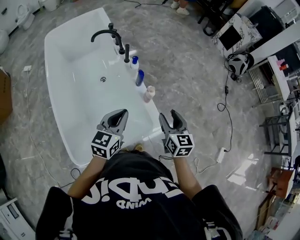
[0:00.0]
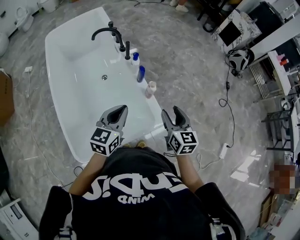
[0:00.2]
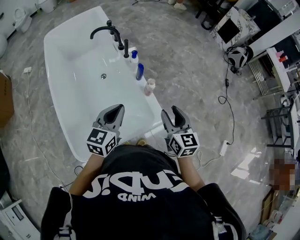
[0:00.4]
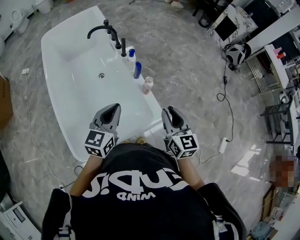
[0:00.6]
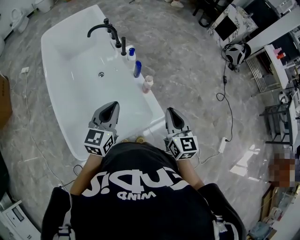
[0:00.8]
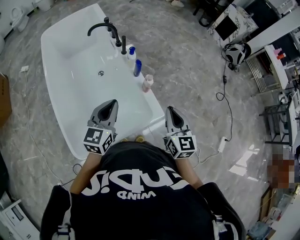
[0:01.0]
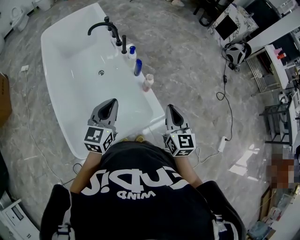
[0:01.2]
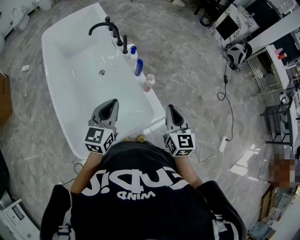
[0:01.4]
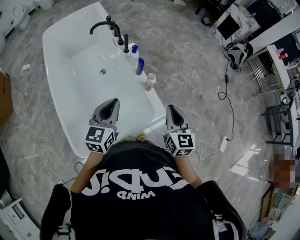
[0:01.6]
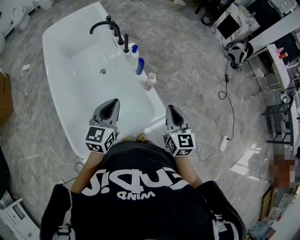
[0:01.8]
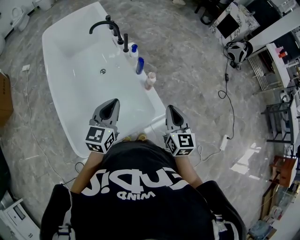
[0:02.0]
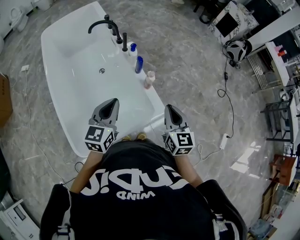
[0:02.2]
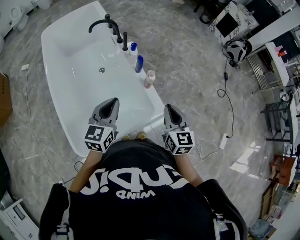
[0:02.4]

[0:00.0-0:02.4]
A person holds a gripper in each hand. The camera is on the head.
0:00.0 to 0:01.2: The right gripper changes place by approximately 5 cm, and closes.
0:01.2 to 0:02.4: The grippers make only small movements.

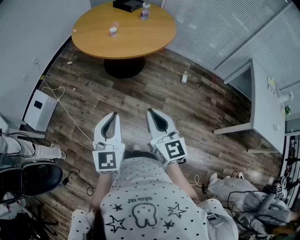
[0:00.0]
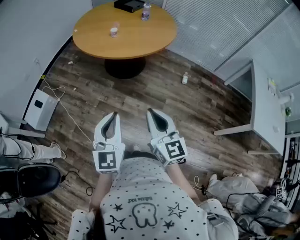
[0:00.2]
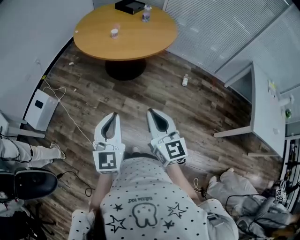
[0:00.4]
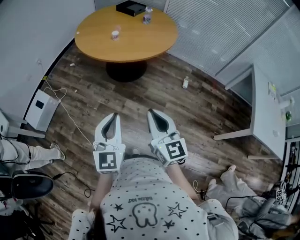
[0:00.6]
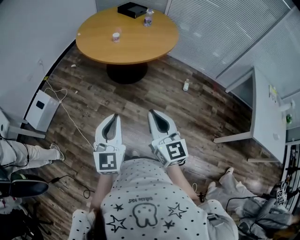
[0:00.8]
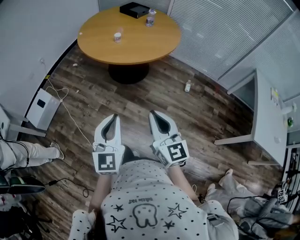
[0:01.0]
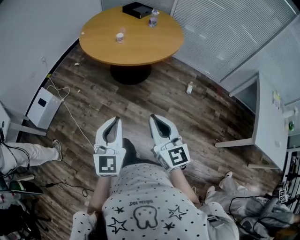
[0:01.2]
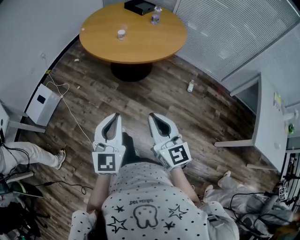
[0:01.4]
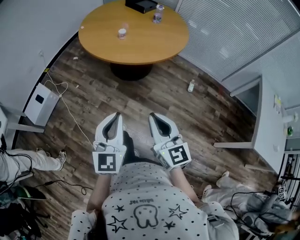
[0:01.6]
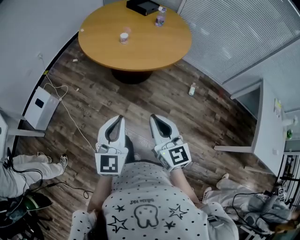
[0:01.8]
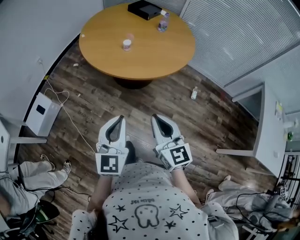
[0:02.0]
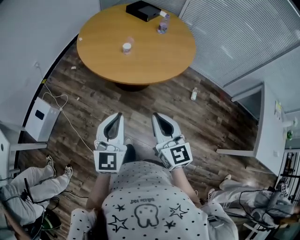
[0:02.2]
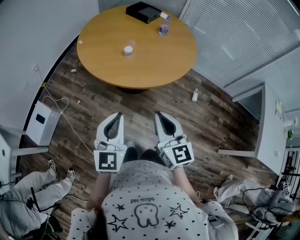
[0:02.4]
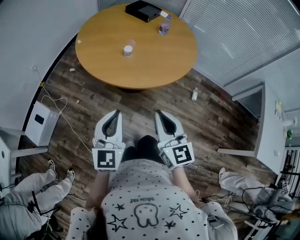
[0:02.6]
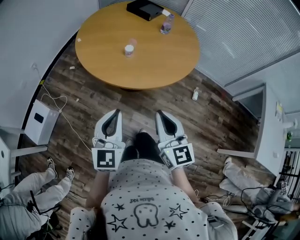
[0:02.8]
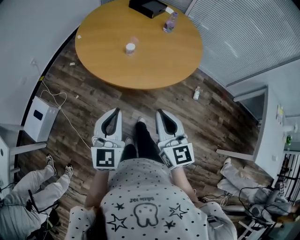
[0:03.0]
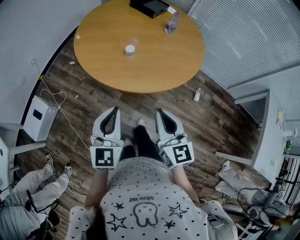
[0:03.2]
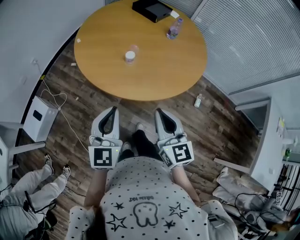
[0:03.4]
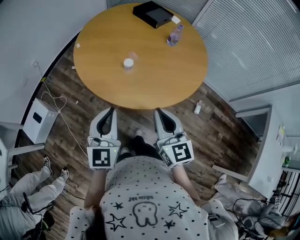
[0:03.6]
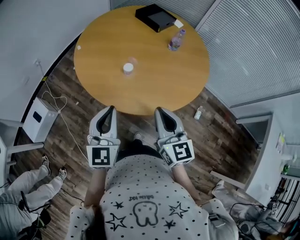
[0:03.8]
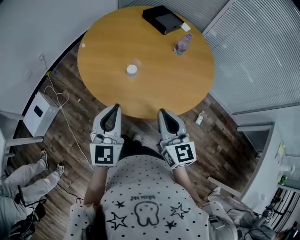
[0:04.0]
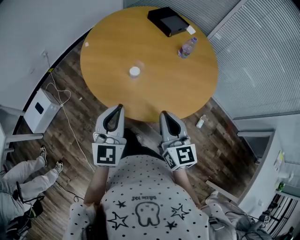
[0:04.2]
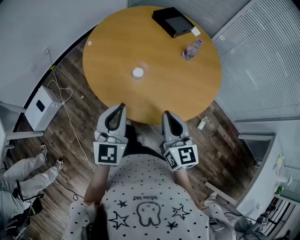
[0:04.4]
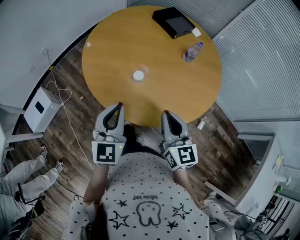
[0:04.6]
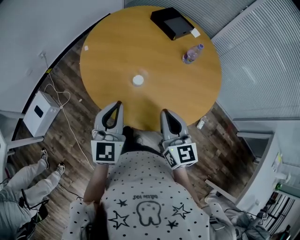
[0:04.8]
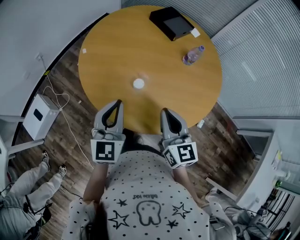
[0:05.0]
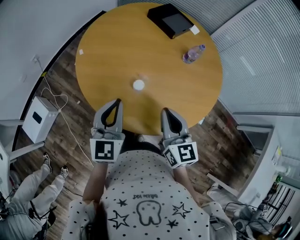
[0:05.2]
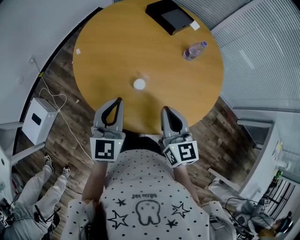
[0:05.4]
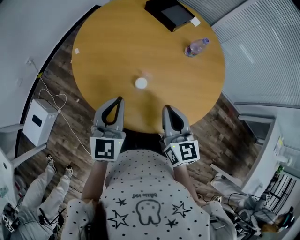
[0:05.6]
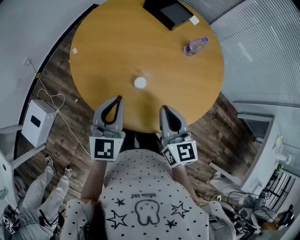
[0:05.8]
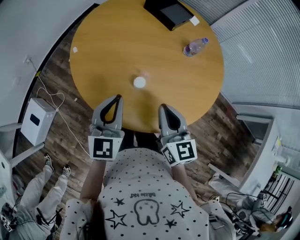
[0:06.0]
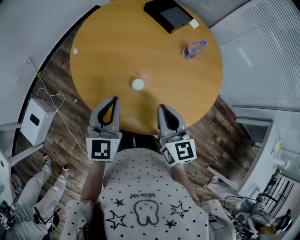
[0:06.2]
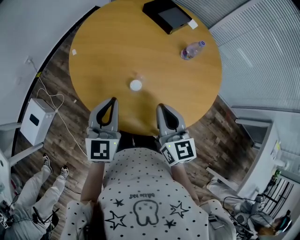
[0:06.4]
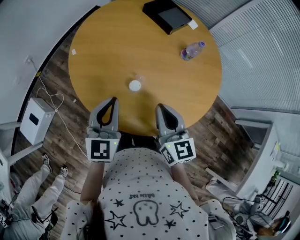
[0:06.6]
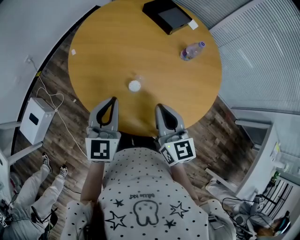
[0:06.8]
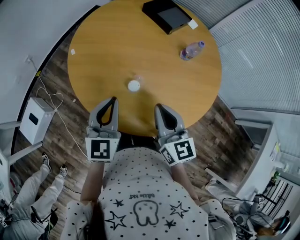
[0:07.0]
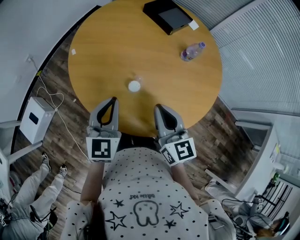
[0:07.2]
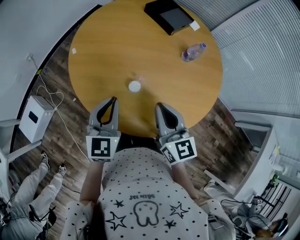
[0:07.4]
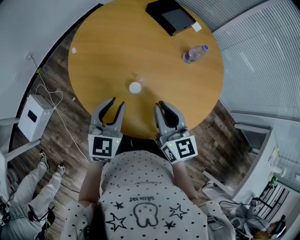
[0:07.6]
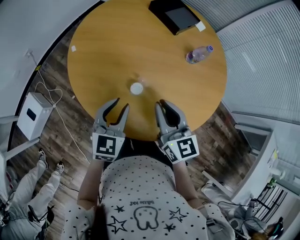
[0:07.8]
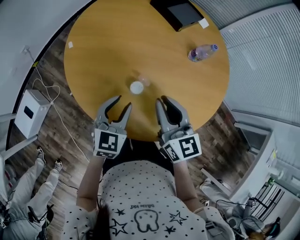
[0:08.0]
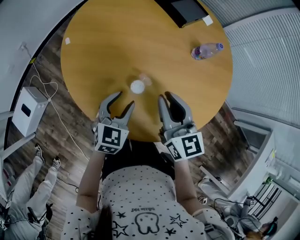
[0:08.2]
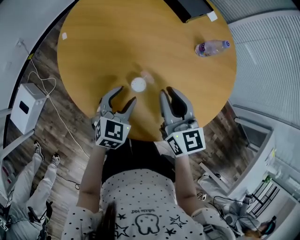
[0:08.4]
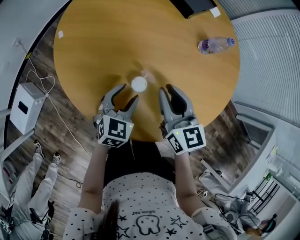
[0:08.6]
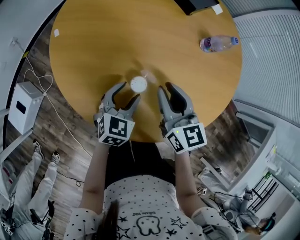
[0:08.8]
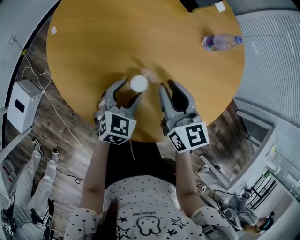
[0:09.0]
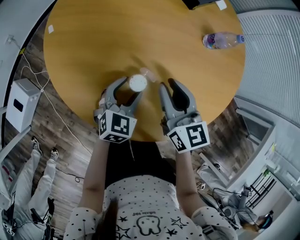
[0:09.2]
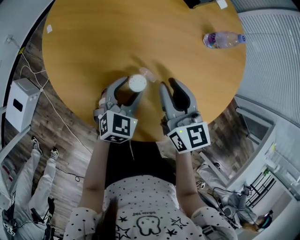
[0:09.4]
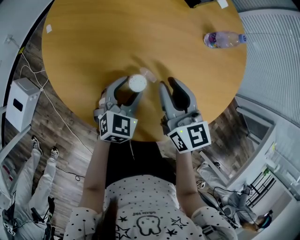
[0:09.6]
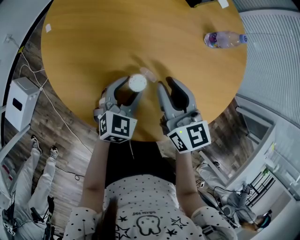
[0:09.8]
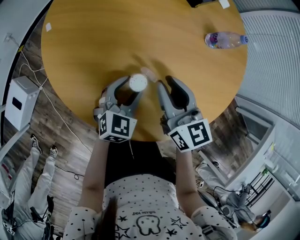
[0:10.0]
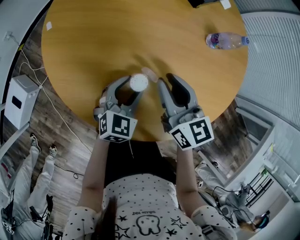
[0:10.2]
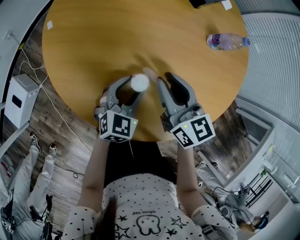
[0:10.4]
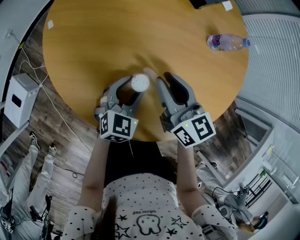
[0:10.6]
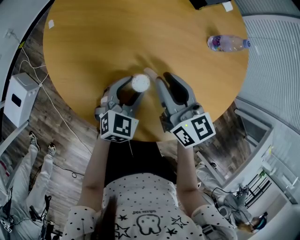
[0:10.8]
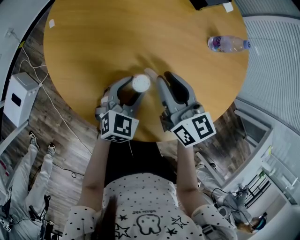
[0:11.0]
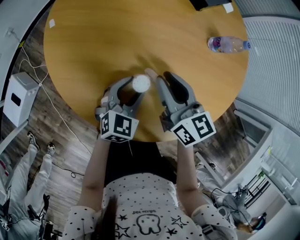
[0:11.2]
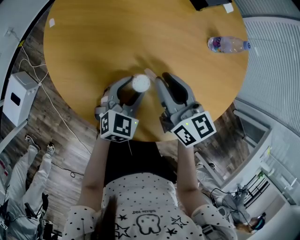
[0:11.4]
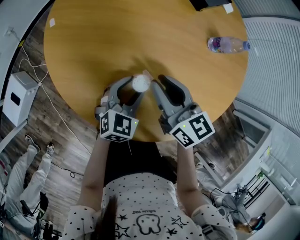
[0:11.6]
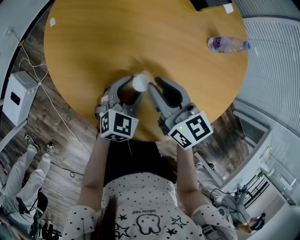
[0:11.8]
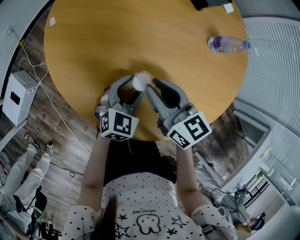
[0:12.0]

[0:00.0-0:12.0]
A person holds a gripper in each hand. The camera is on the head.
0:00.0 to 0:01.6: The grippers both shift forward by roughly 10 cm.
0:01.6 to 0:03.0: The left gripper heads forward and to the left, covering approximately 25 cm; the right gripper moves forward, approximately 25 cm.
0:03.0 to 0:04.4: The grippers both shift forward by about 20 cm.
0:04.4 to 0:06.0: The right gripper travels forward and to the left by roughly 15 cm. The left gripper travels forward by about 15 cm.
0:06.0 to 0:07.6: The left gripper opens its fingers.
0:07.6 to 0:09.0: The left gripper heads downward, covering about 20 cm, rotates some 20 degrees, and opens up; the right gripper is displaced downward and forward by approximately 15 cm.
0:09.0 to 0:12.0: There are only small adjustments of the grippers.

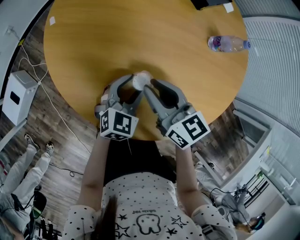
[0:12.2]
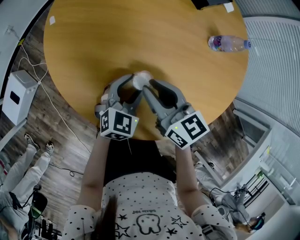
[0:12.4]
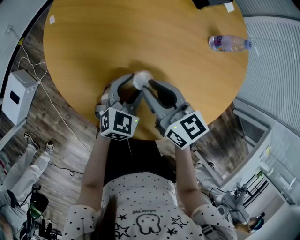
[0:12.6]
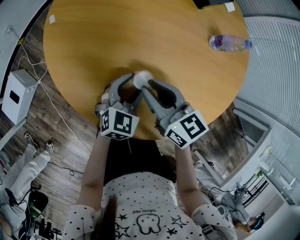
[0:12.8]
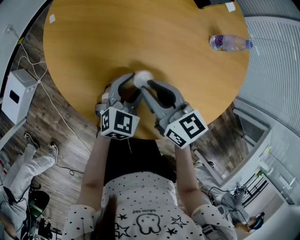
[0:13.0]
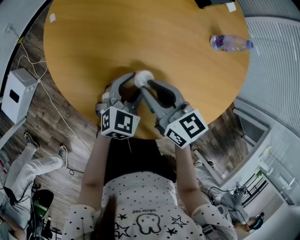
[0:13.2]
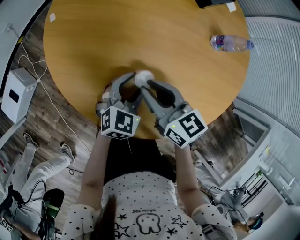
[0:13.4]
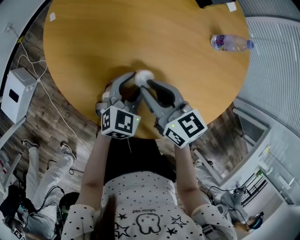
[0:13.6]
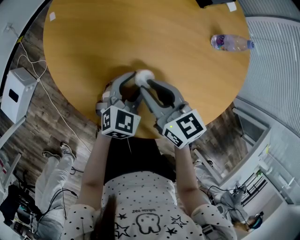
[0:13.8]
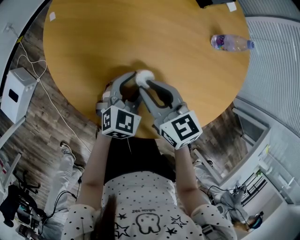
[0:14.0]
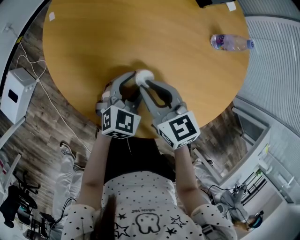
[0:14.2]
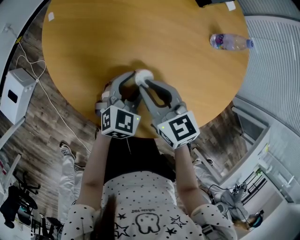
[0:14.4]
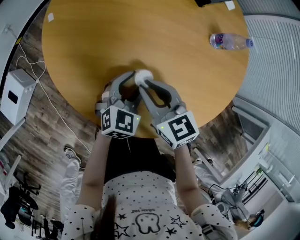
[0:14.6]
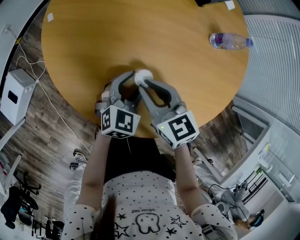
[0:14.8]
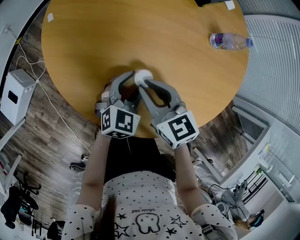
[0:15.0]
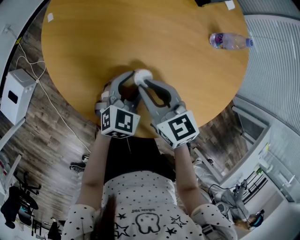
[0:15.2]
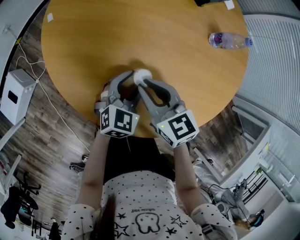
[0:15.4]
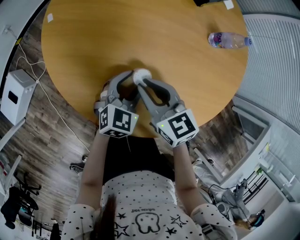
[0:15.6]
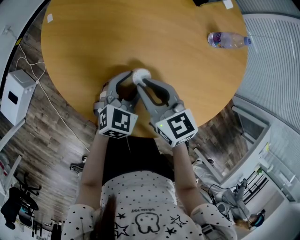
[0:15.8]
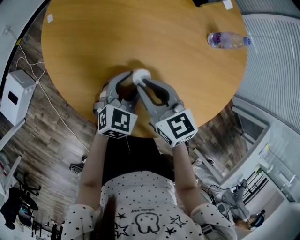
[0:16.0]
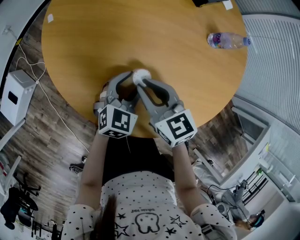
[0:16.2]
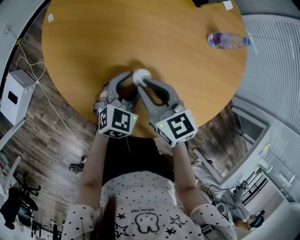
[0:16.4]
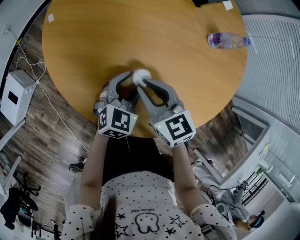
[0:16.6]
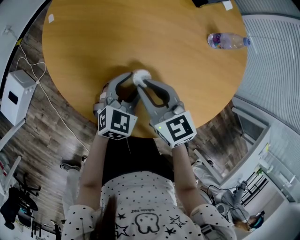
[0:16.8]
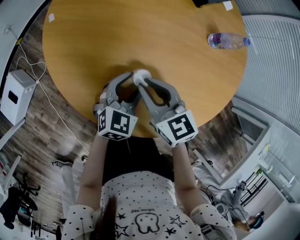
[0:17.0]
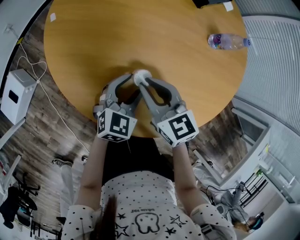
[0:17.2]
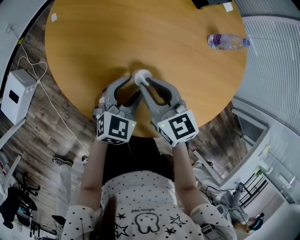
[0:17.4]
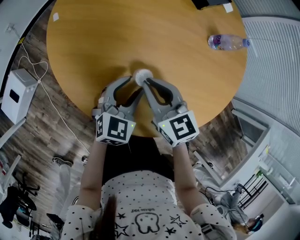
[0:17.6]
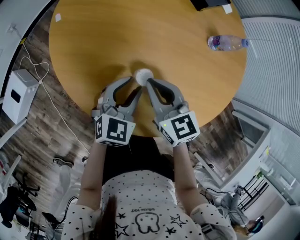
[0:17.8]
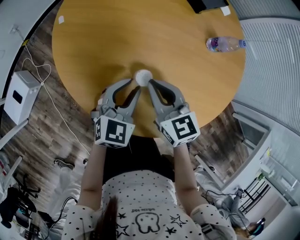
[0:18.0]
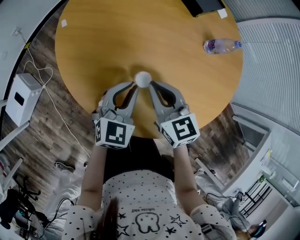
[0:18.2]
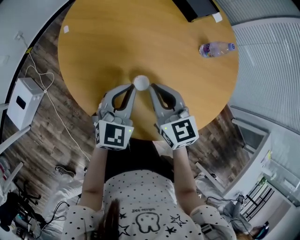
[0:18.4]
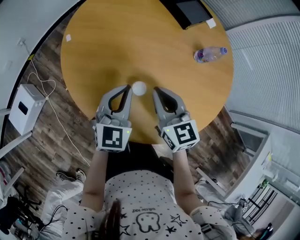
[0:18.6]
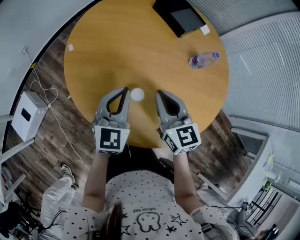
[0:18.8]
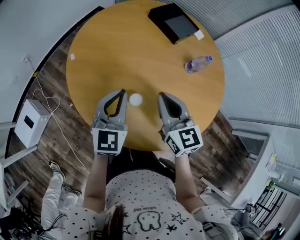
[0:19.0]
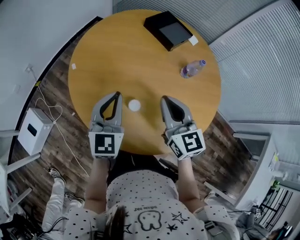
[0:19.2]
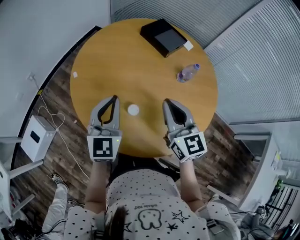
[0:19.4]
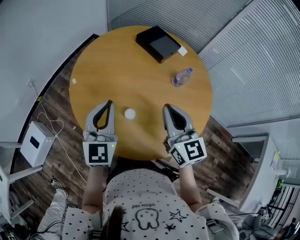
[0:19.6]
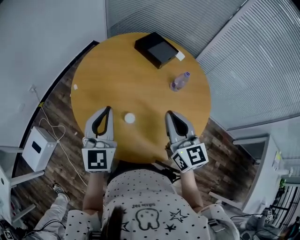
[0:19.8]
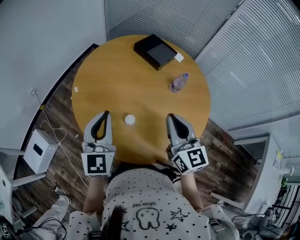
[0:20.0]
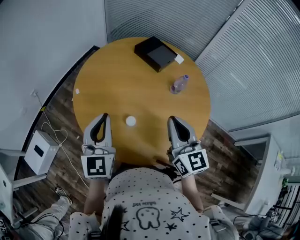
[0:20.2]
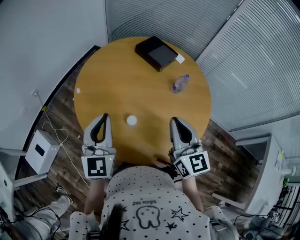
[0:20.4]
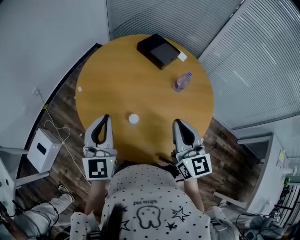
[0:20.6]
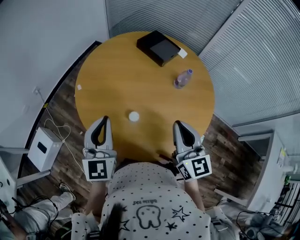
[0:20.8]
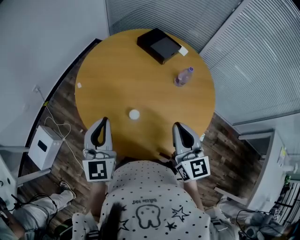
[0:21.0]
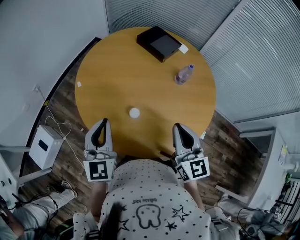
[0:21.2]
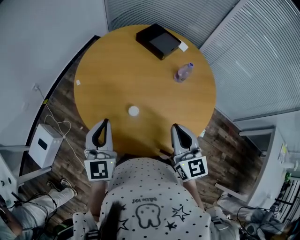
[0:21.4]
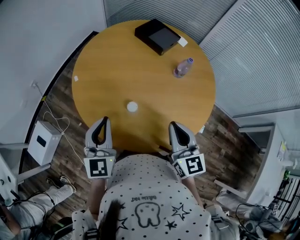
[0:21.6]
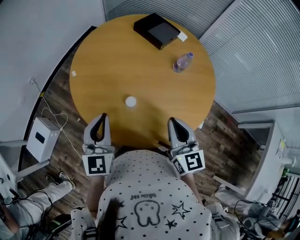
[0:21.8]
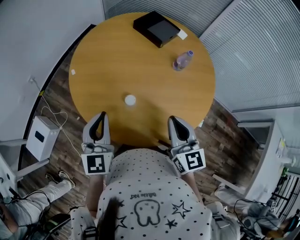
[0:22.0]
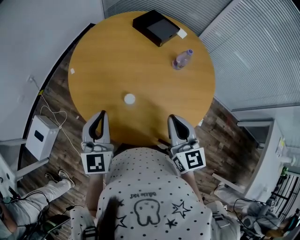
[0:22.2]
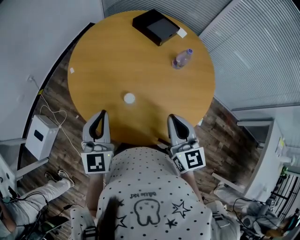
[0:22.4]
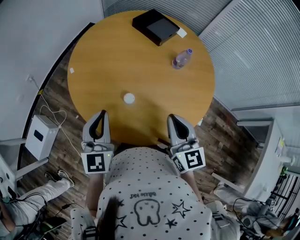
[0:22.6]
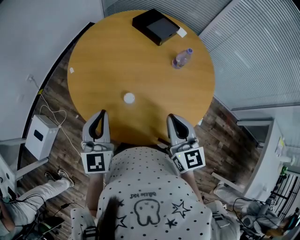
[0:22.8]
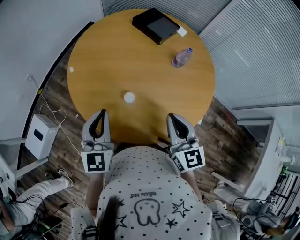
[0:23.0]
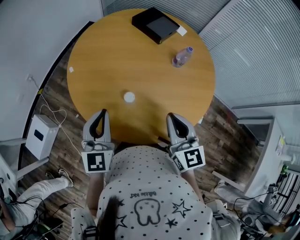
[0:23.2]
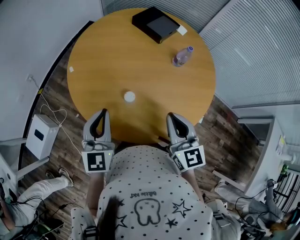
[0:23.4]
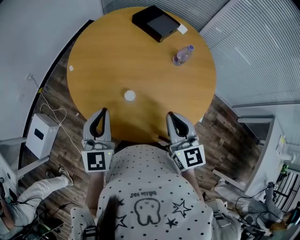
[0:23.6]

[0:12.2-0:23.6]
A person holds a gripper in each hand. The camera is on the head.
0:12.2 to 0:15.0: The grippers stay close to where they were, moving slightly.
0:15.0 to 0:16.4: Both grippers stay put.
0:16.4 to 0:17.8: The left gripper ends up approximately 5 cm from where it was.
0:17.8 to 0:19.4: Both grippers travel together upward, roughly 20 cm. The left gripper rotates roughly 30 degrees, and closes up; the right gripper turns by some 20 degrees.
0:19.4 to 0:20.8: The right gripper heads backward, covering roughly 10 cm, while the left gripper heads backward and upward, covering some 10 cm.
0:20.8 to 0:22.2: The two grippers go some 5 cm downward.
0:22.2 to 0:23.6: Neither gripper changes place.
